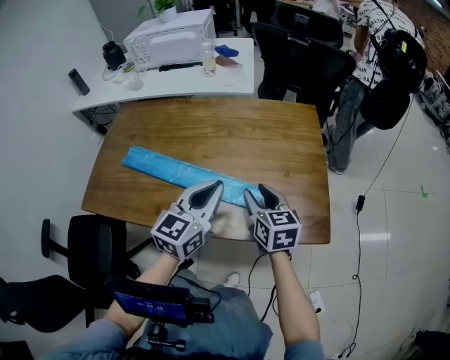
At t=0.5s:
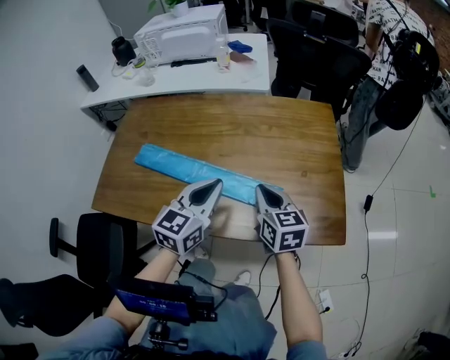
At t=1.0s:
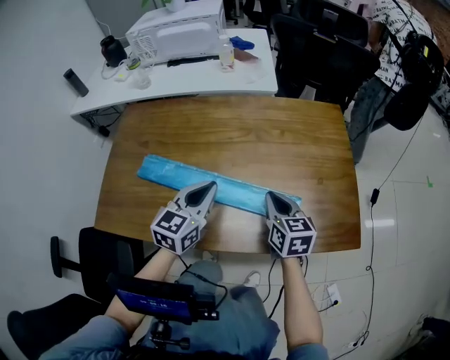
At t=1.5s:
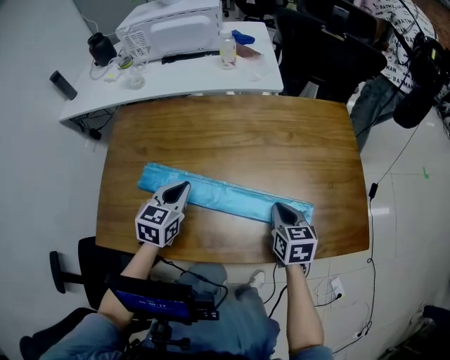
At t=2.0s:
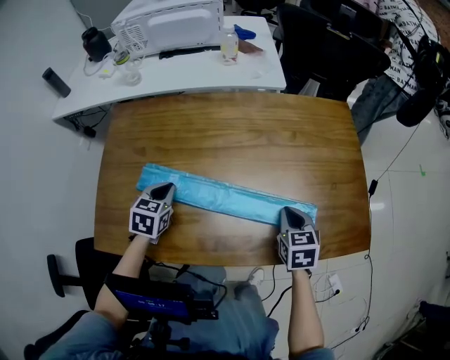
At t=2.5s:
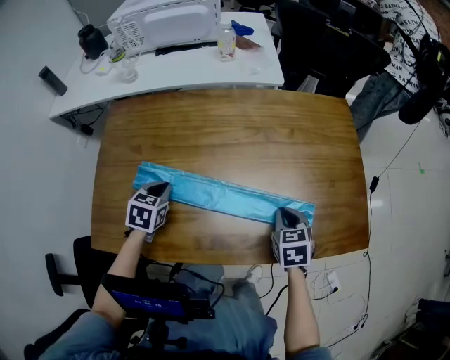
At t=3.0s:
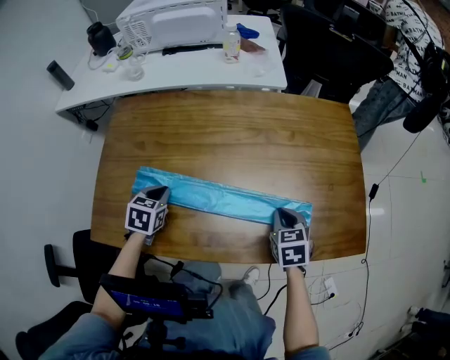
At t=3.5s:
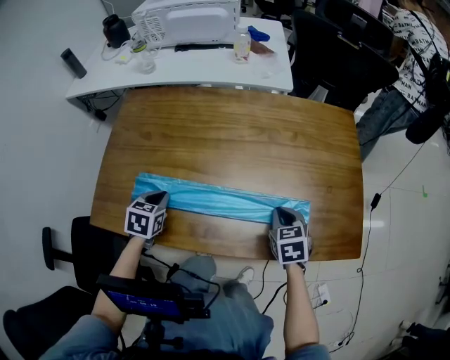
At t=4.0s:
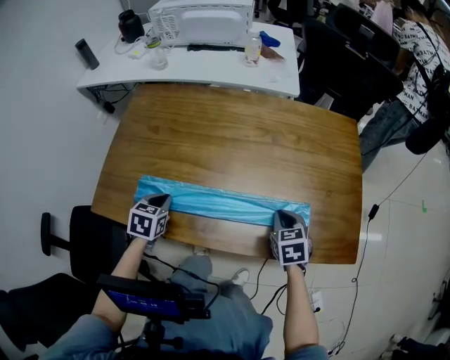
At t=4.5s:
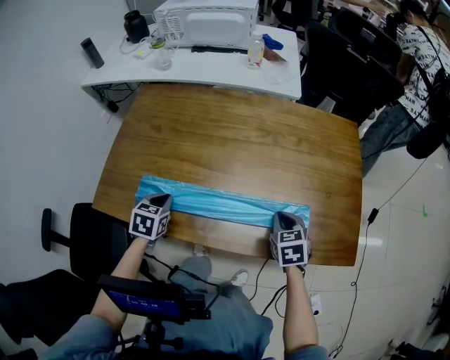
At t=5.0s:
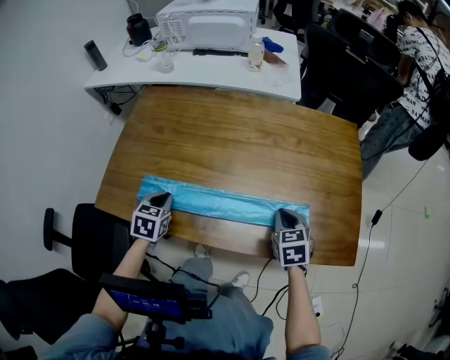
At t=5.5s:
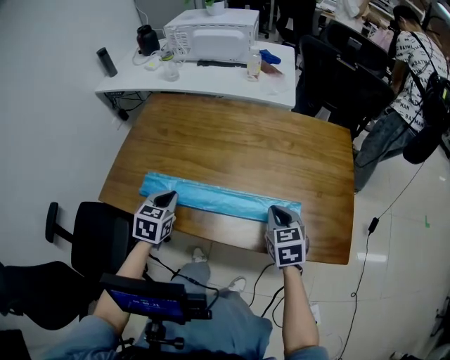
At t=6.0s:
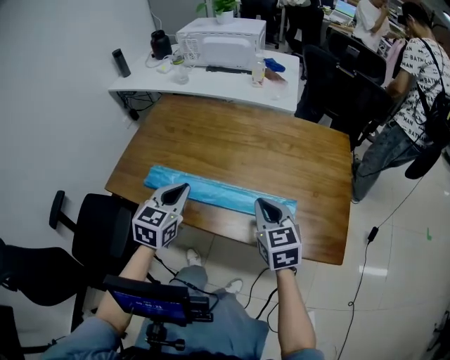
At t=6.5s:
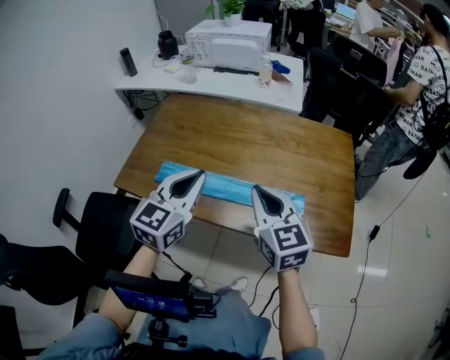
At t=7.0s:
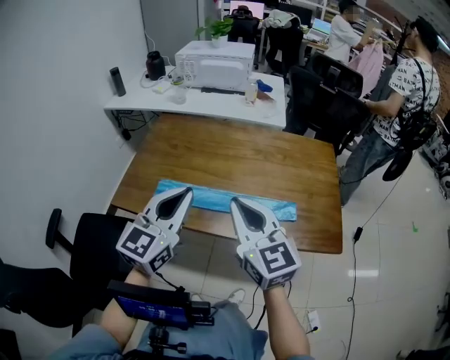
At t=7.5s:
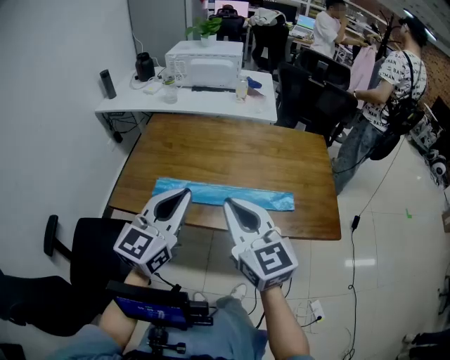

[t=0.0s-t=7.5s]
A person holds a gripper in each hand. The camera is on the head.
t=0.0s to t=2.0s: The left gripper goes some 35 cm to the left and downward, and points its fingers roughly 40 degrees further downward; the right gripper shifts about 10 cm downward and to the left, swivels some 30 degrees, and closes.
t=2.0s to t=4.0s: The left gripper moves backward, some 10 cm.
t=4.0s to t=5.5s: The two grippers go roughly 5 cm upward.
t=5.5s to t=7.5s: The right gripper goes some 35 cm upward, to the left and backward, and tilts its fingers some 40 degrees upward. Meanwhile the left gripper goes about 30 cm upward and backward, and angles its fingers upward, by some 40 degrees.

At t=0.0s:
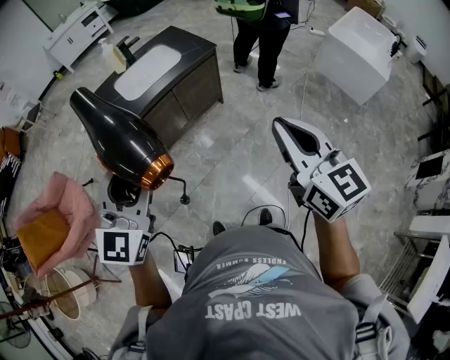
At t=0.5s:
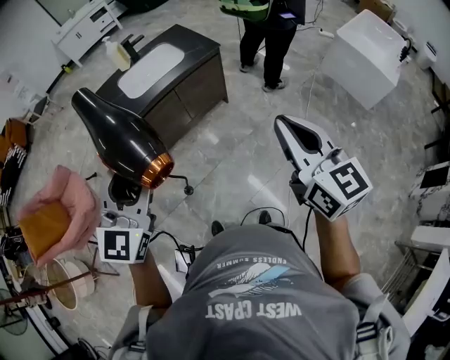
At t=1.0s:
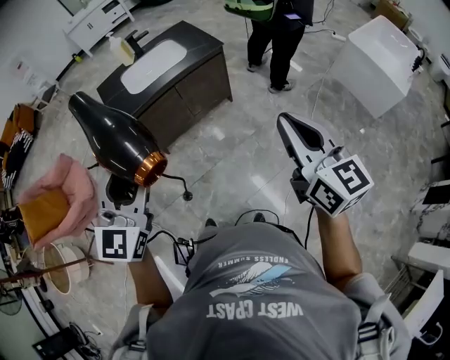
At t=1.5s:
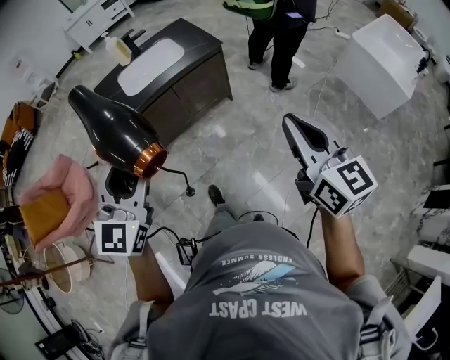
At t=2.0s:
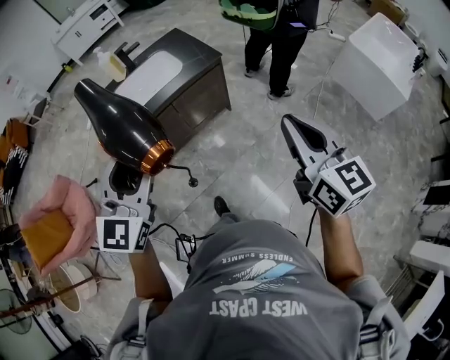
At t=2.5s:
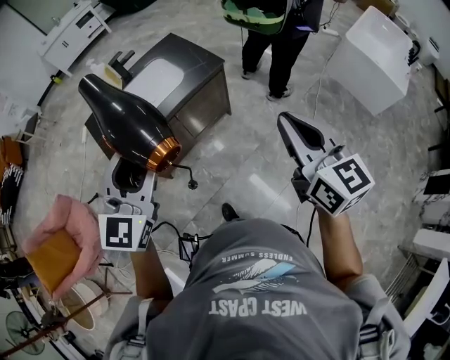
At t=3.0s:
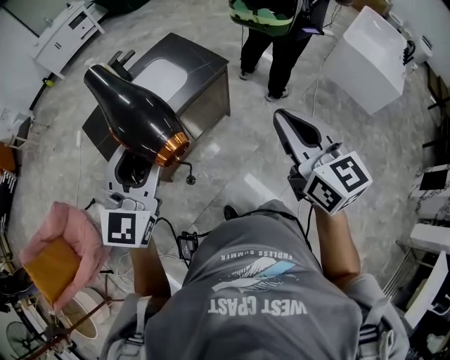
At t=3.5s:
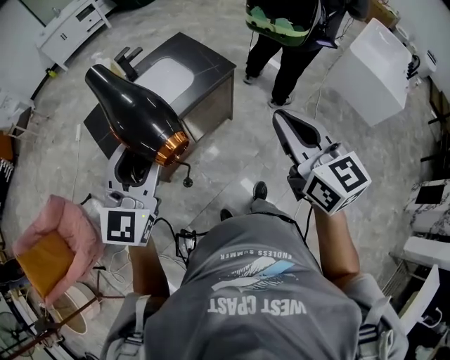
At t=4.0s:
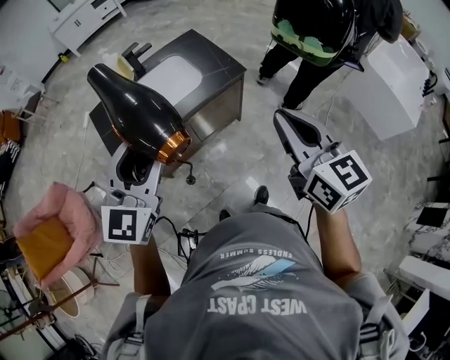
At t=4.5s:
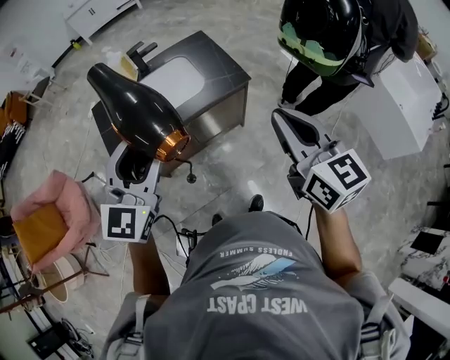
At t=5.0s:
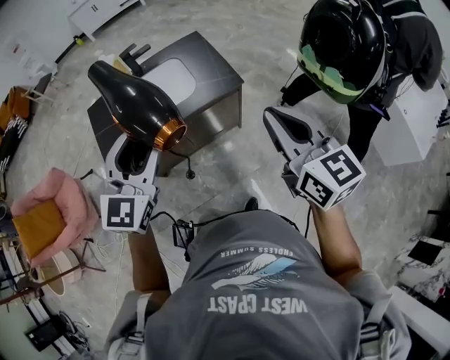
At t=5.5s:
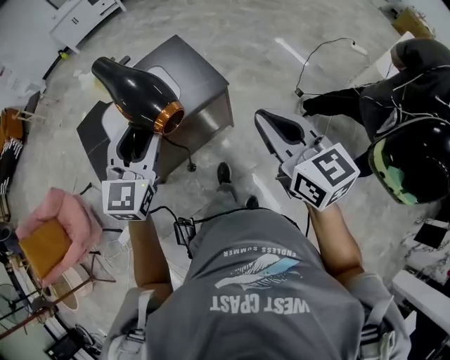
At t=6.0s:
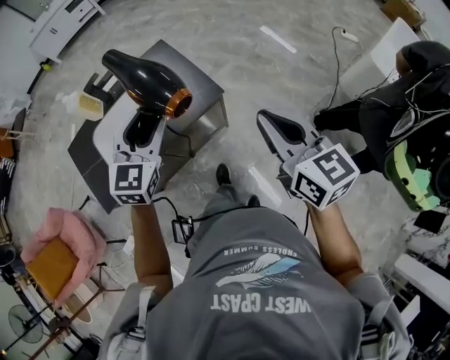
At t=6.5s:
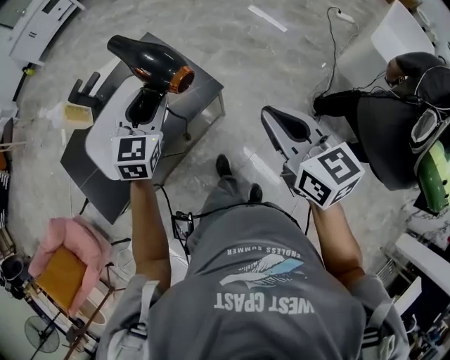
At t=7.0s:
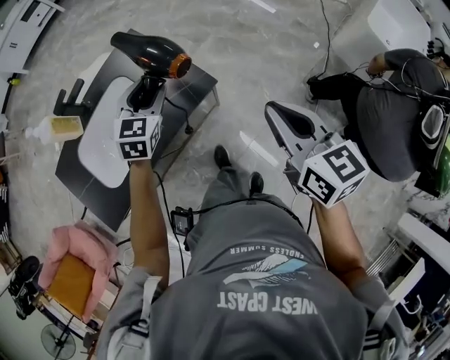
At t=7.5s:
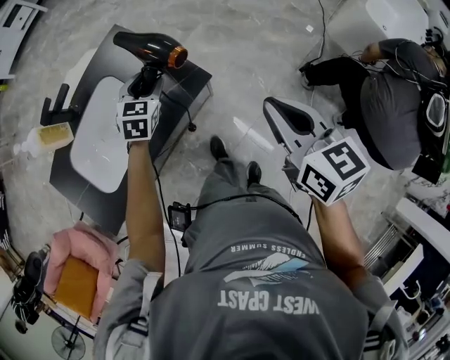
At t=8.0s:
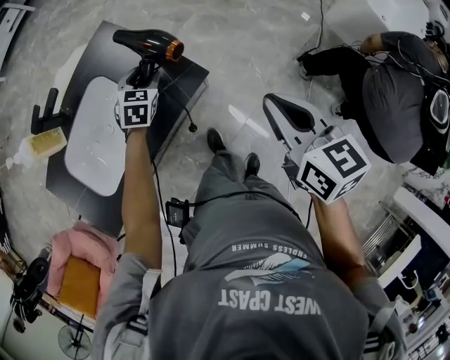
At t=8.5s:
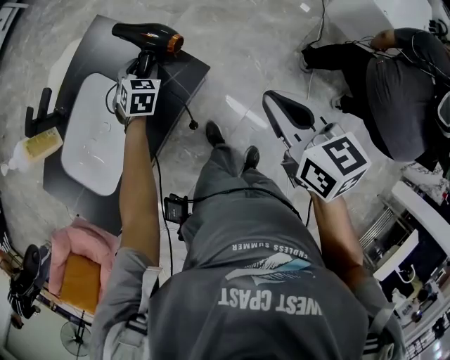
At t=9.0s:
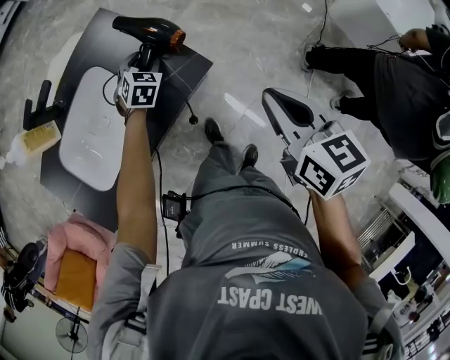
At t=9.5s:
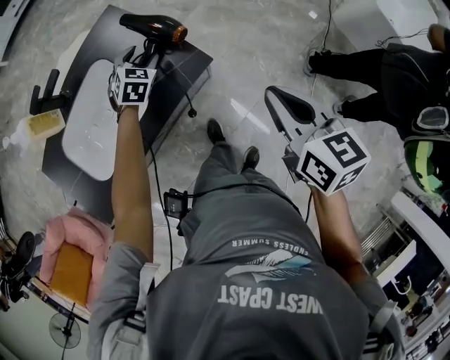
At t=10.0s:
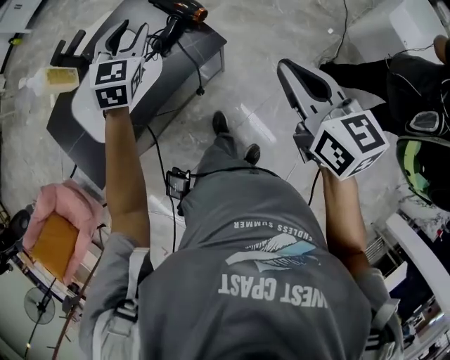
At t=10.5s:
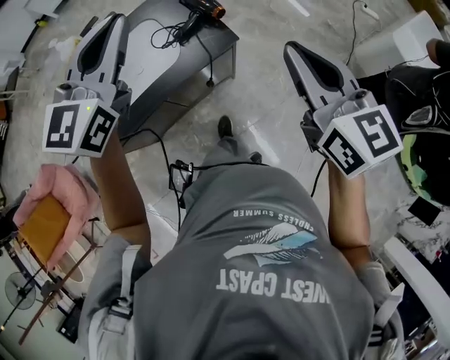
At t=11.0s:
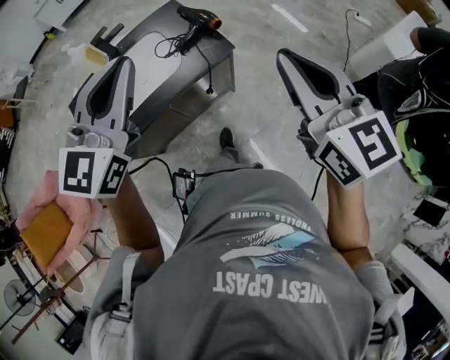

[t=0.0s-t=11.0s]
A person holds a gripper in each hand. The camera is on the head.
t=0.0s to t=2.0s: The grippers both shift forward and to the right by some 20 cm.
t=2.0s to t=3.5s: The left gripper heads forward and to the left, covering about 15 cm. Meanwhile the right gripper heads to the left and forward, covering some 20 cm.
t=3.5s to t=5.5s: Both grippers travel together forward and to the right, about 20 cm.
t=5.5s to t=7.5s: The left gripper moves forward and downward, about 40 cm, and swivels approximately 30 degrees; the right gripper shifts approximately 20 cm forward and downward, and turns by about 30 degrees.
t=7.5s to t=9.0s: The left gripper heads downward and forward, covering roughly 15 cm; the right gripper heads downward, covering some 5 cm.
t=9.0s to t=11.0s: The left gripper goes about 60 cm upward and backward, points its fingers approximately 50 degrees further upward, and closes its fingers; the right gripper heads upward and backward, covering some 25 cm, and rotates approximately 40 degrees.

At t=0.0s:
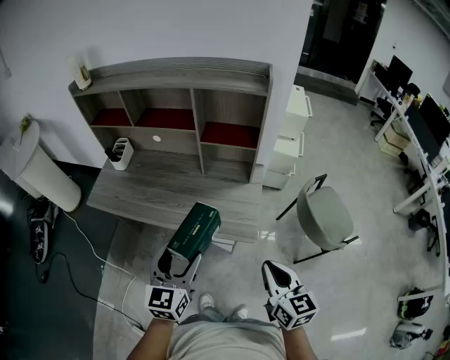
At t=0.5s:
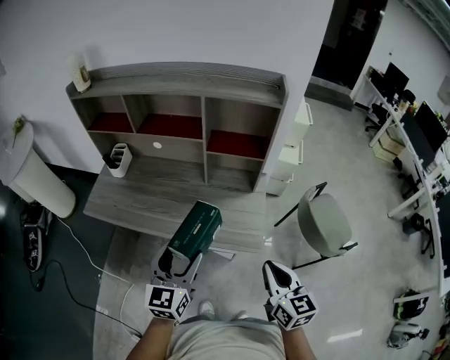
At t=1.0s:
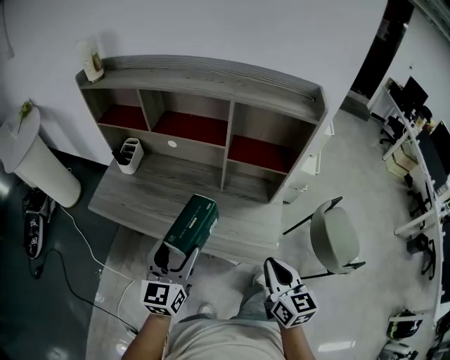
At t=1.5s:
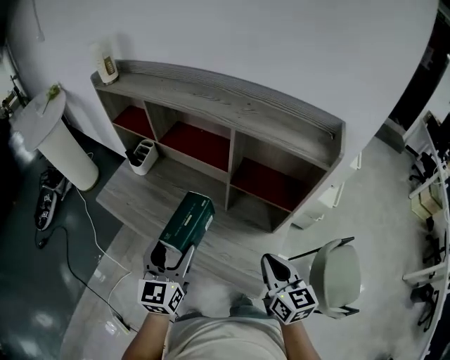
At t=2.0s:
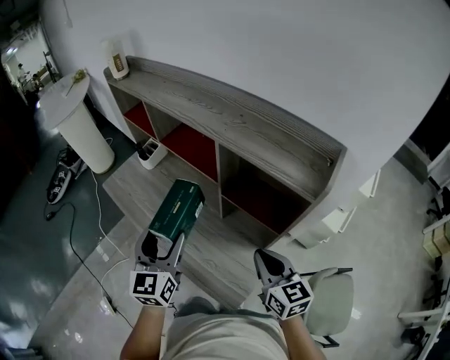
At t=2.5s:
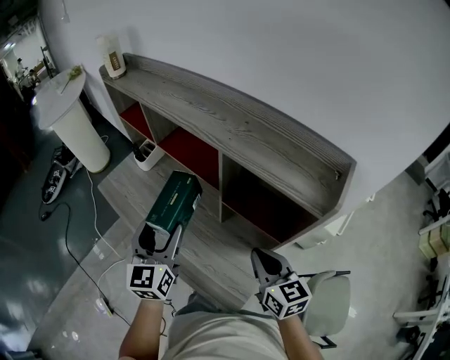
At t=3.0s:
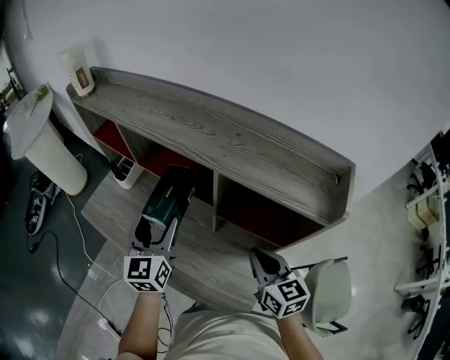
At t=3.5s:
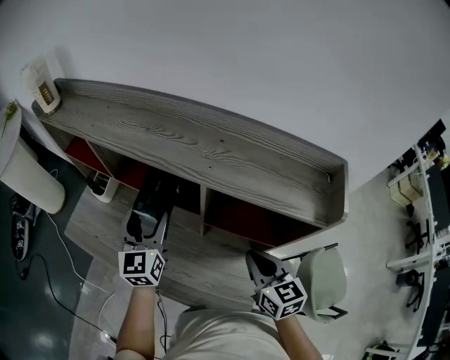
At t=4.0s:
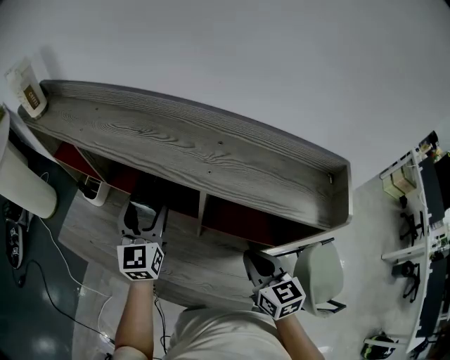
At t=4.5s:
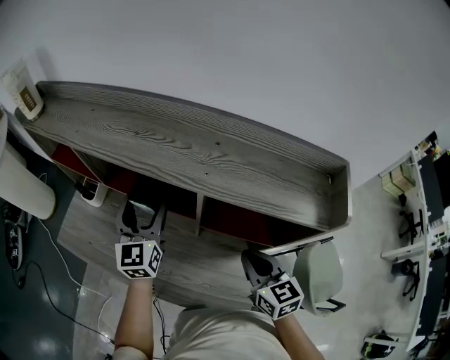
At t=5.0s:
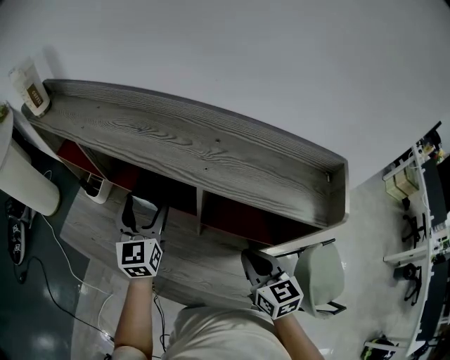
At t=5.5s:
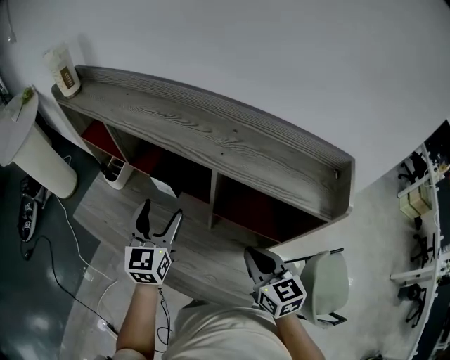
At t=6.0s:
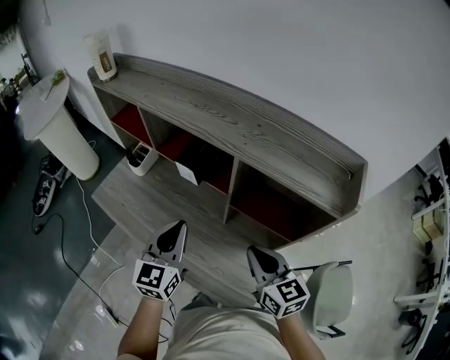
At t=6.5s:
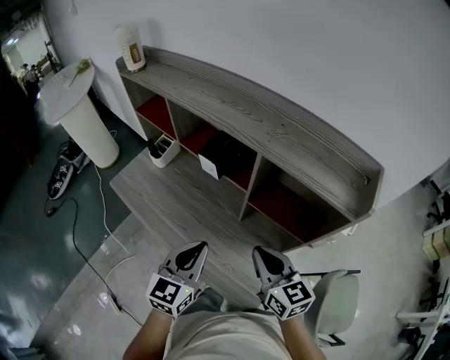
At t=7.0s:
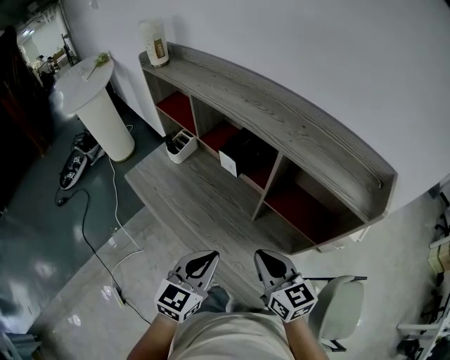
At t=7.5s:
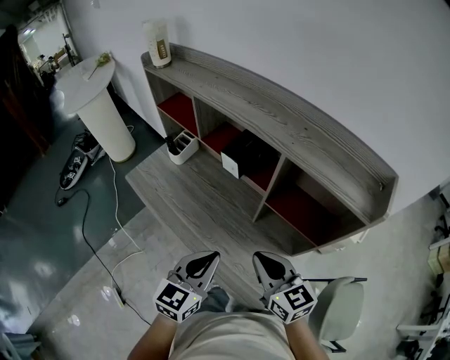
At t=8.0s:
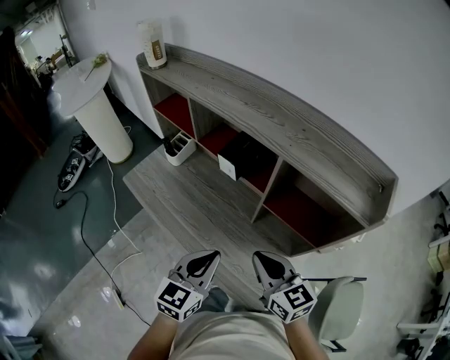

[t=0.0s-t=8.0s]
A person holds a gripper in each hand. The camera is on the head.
t=0.0s to t=2.0s: The right gripper ends up approximately 35 cm from where it was, and changes its angle by about 30 degrees; the left gripper shifts by about 25 cm, and rotates roughly 30 degrees.
t=2.0s to t=4.0s: The right gripper moves forward, some 10 cm, and changes its angle by about 20 degrees; the left gripper moves forward, roughly 25 cm.
t=4.0s to t=6.0s: The right gripper ends up about 5 cm from where it was. The left gripper shifts some 15 cm backward, and closes up.
t=6.0s to t=8.0s: The left gripper heads backward, covering some 10 cm. The right gripper is displaced to the left by approximately 5 cm.
